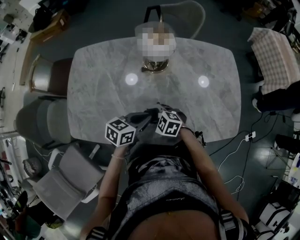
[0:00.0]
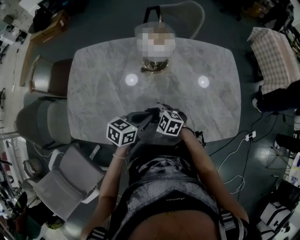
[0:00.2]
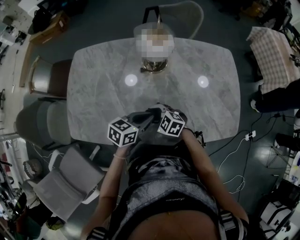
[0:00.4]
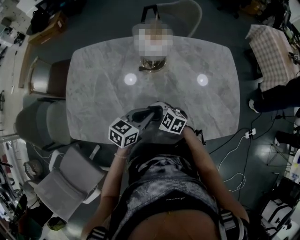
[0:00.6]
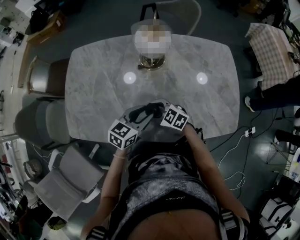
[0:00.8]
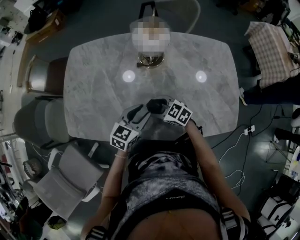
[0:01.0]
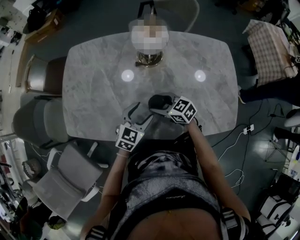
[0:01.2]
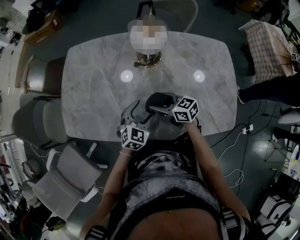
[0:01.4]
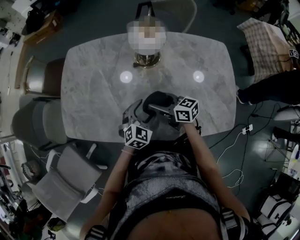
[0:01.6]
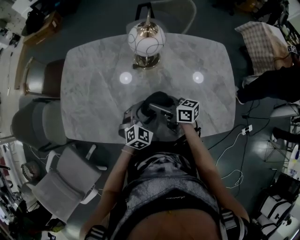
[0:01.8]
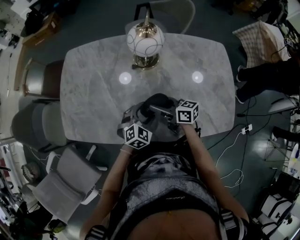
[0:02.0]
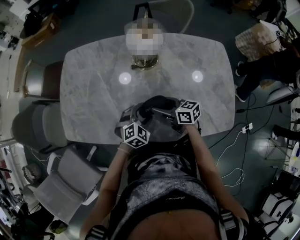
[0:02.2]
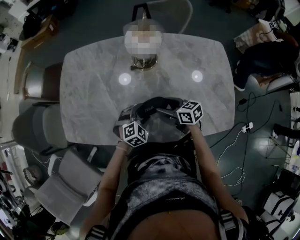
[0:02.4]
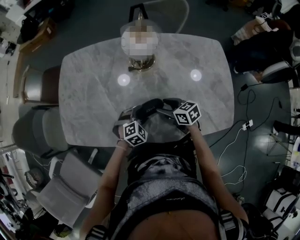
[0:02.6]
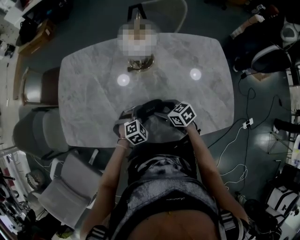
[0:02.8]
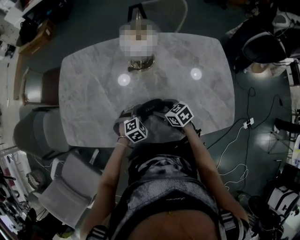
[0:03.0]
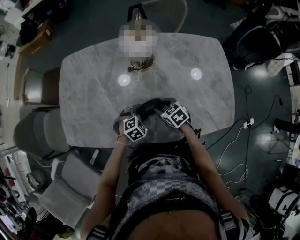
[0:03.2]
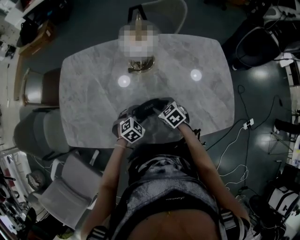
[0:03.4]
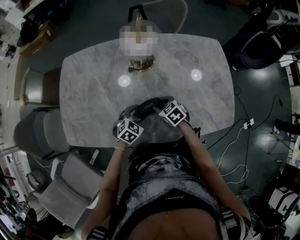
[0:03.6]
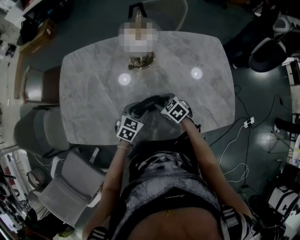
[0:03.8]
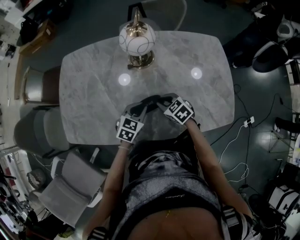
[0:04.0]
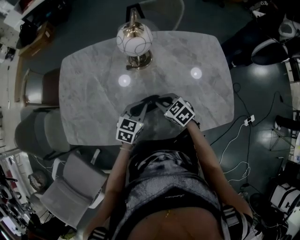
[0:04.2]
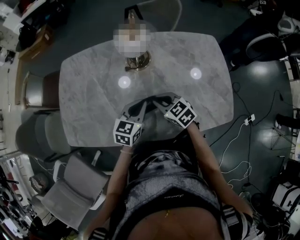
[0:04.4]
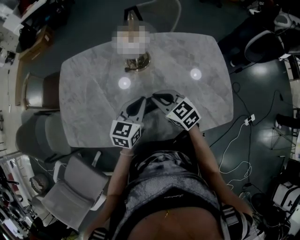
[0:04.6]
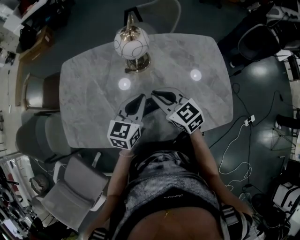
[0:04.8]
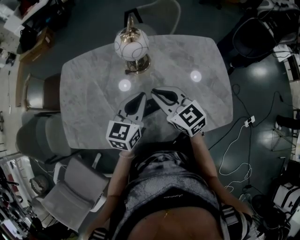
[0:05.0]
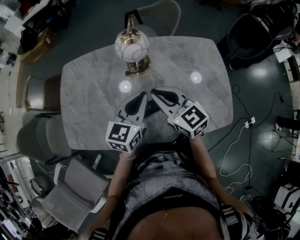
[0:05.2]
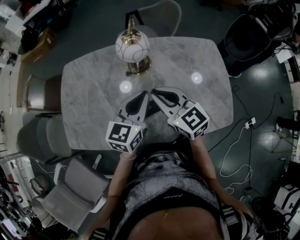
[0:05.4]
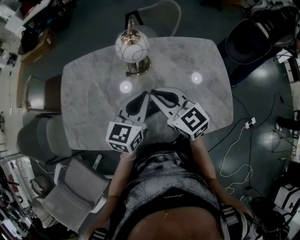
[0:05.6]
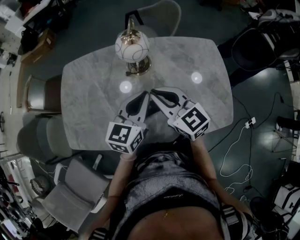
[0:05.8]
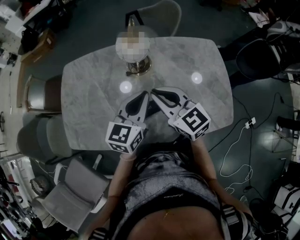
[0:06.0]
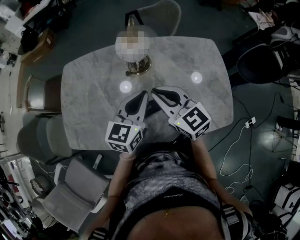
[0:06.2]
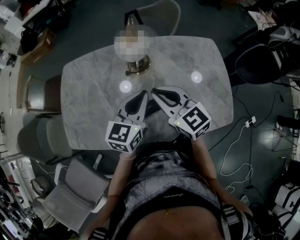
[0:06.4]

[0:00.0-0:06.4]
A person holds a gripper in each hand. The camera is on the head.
0:00.0 to 0:01.6: The right gripper shifts by about 10 cm, and points its fingers approximately 30 degrees further upward, while the left gripper goes roughly 5 cm downward, swivels about 50 degrees, and opens.
0:01.6 to 0:03.2: The two grippers go approximately 10 cm downward. The left gripper rotates roughly 30 degrees. Meanwhile the right gripper points its fingers roughly 40 degrees further downward.
0:03.2 to 0:04.8: The two grippers go some 20 cm upward. The right gripper turns by about 30 degrees, and closes up; the left gripper points its fingers about 40 degrees further upward, and closes up.
0:04.8 to 0:06.4: The grippers both shift upward by roughly 5 cm.

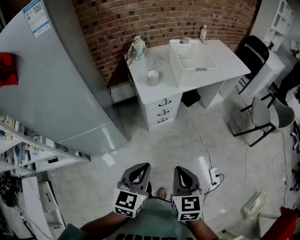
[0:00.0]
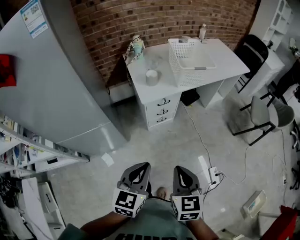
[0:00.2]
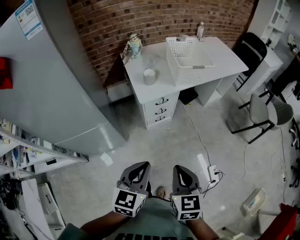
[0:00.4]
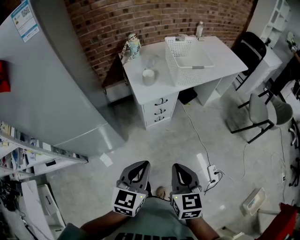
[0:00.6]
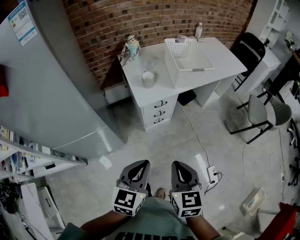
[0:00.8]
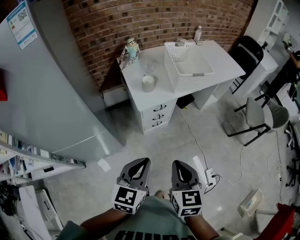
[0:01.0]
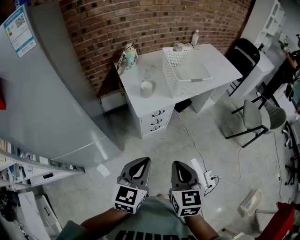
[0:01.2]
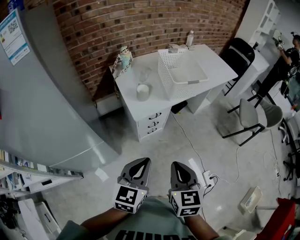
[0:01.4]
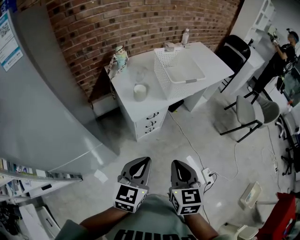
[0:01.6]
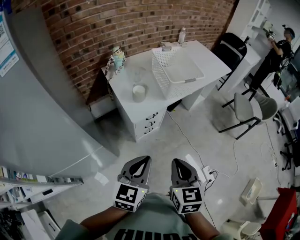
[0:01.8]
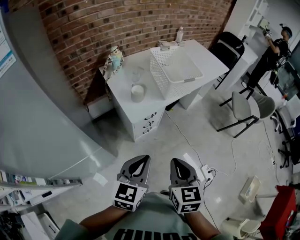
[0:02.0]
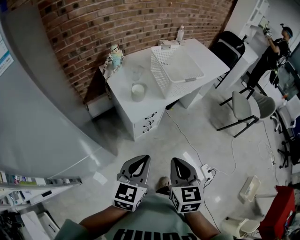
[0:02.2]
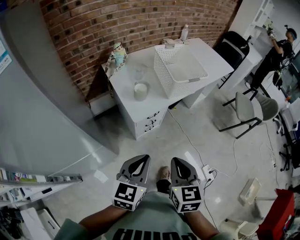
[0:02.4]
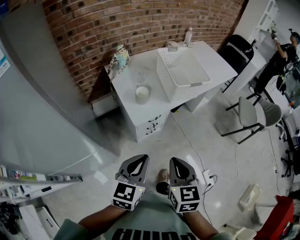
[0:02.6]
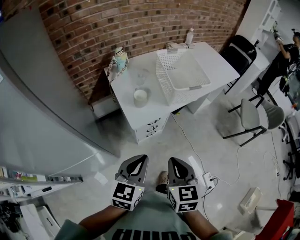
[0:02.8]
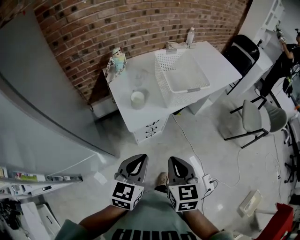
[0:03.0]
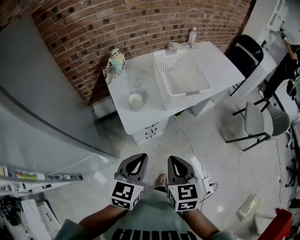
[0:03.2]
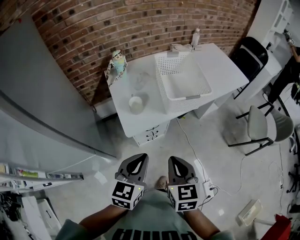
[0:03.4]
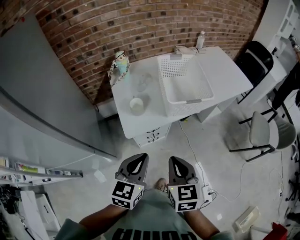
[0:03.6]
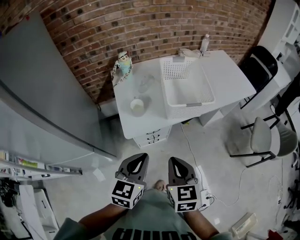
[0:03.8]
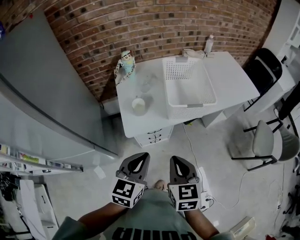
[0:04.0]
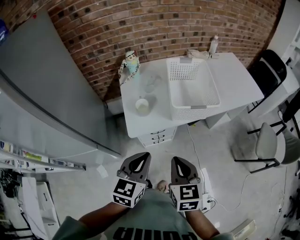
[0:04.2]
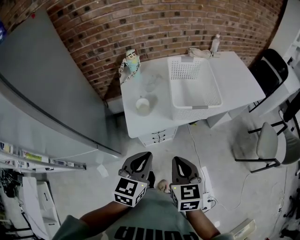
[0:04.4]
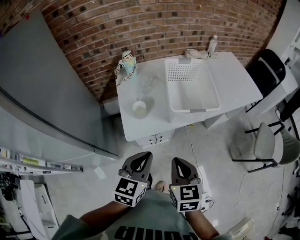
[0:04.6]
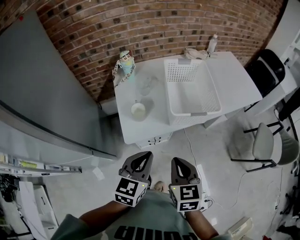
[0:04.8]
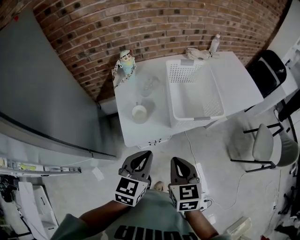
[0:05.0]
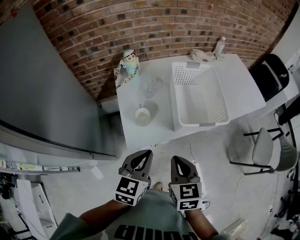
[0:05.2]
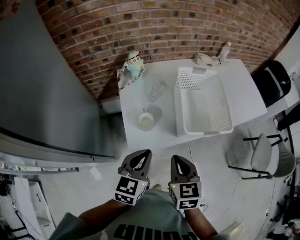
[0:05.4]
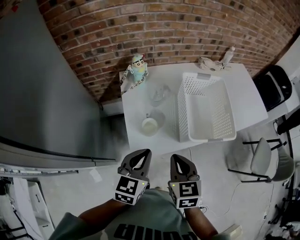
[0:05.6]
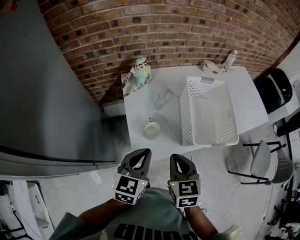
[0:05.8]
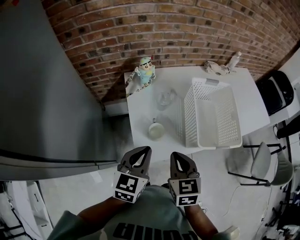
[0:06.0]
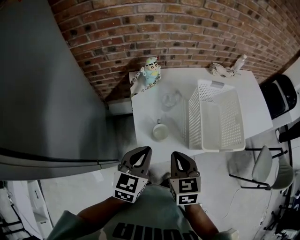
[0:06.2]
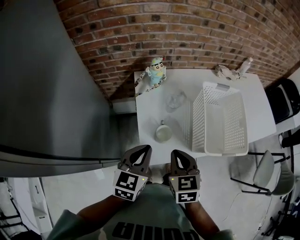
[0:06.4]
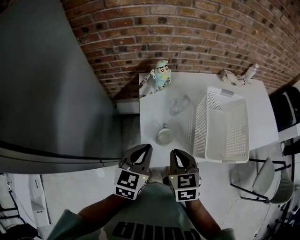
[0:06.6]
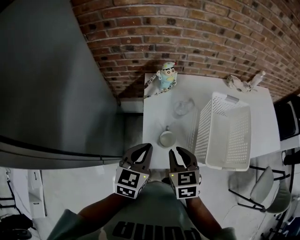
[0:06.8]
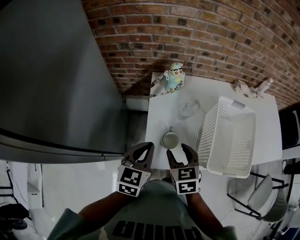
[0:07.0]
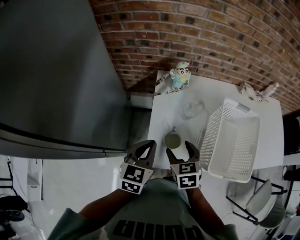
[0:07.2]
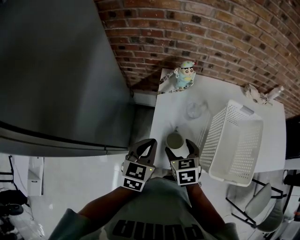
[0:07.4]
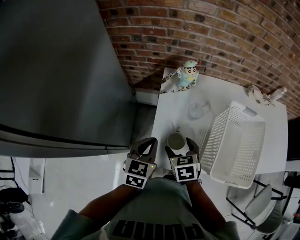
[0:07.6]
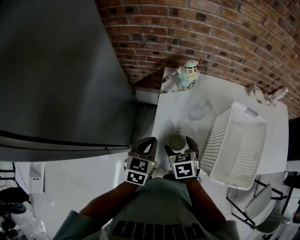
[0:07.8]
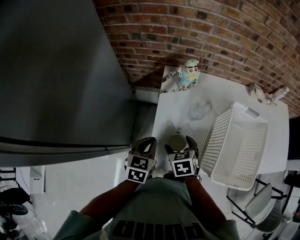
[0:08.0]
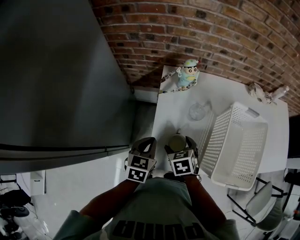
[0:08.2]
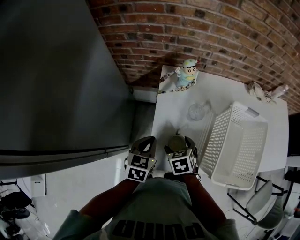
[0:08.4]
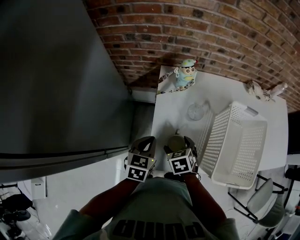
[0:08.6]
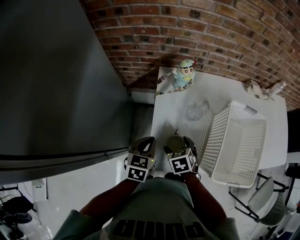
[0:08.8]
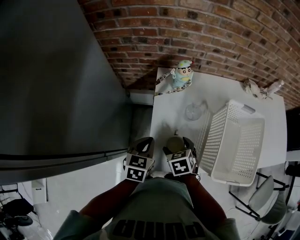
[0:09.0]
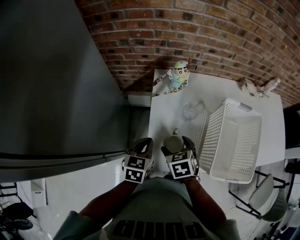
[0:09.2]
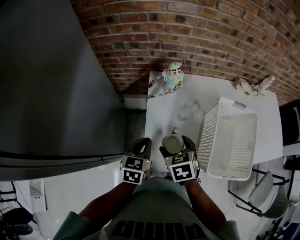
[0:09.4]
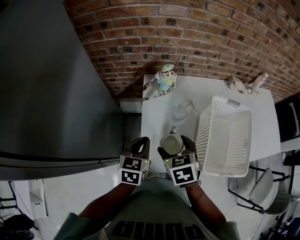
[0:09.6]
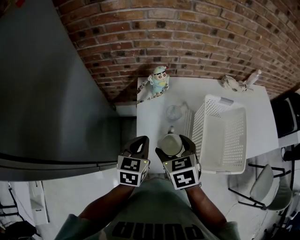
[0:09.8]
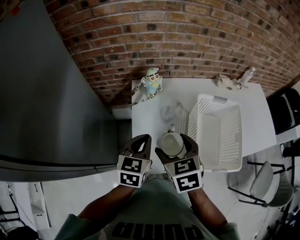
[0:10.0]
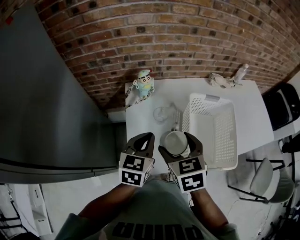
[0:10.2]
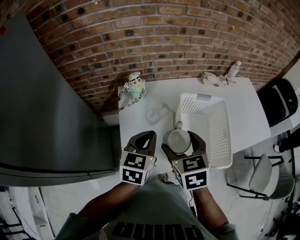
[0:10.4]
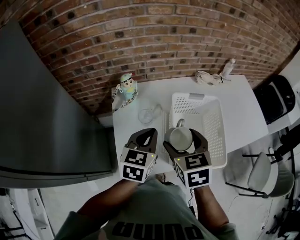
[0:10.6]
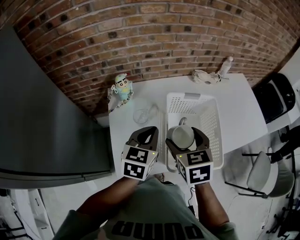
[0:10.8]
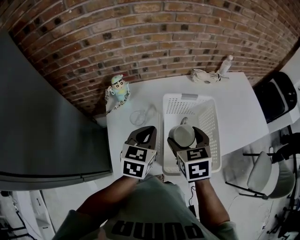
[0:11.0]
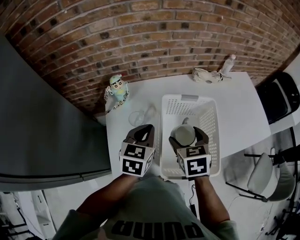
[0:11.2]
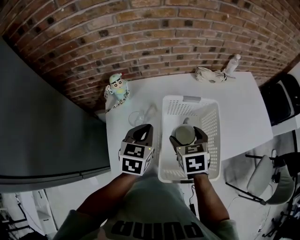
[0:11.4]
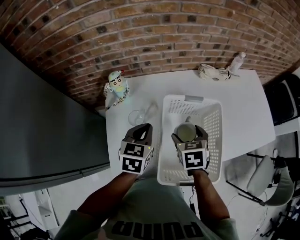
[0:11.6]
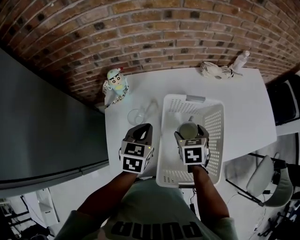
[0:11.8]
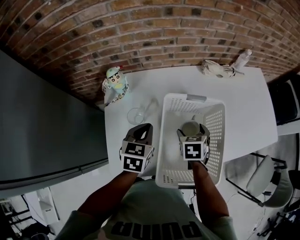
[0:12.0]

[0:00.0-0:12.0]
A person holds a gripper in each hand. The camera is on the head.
0:00.0 to 0:01.6: The left gripper heads forward, covering approximately 15 cm, while the right gripper is displaced forward and to the left by approximately 15 cm.
0:01.6 to 0:03.0: Both grippers travel together forward, some 10 cm.
0:03.0 to 0:04.4: Both grippers travel together forward and to the right, approximately 10 cm.
0:04.4 to 0:06.0: Both grippers travel together forward and to the left, about 20 cm.
0:06.0 to 0:07.6: The left gripper shifts by roughly 10 cm, and swivels roughly 20 degrees; the right gripper shifts by some 15 cm, swivels approximately 30 degrees, and opens its fingers.
0:07.6 to 0:09.0: The left gripper moves downward, about 5 cm.
0:09.0 to 0:10.4: The right gripper goes some 25 cm upward and to the right, and turns by approximately 20 degrees. The left gripper moves to the right and upward, about 20 cm.
0:10.4 to 0:12.0: The right gripper heads downward, to the right and forward, covering approximately 25 cm, and changes its angle by approximately 20 degrees, while the left gripper shifts approximately 15 cm forward, downward and to the right.

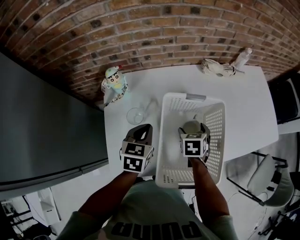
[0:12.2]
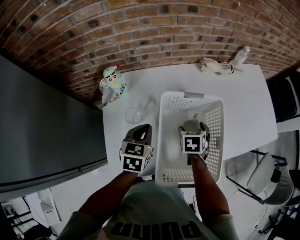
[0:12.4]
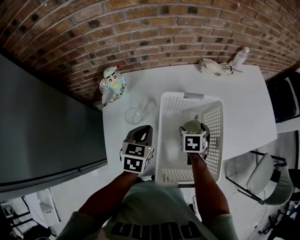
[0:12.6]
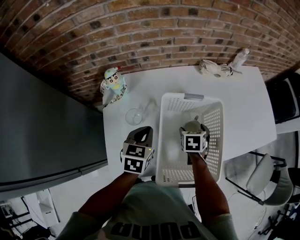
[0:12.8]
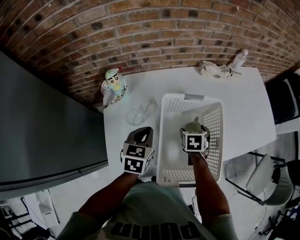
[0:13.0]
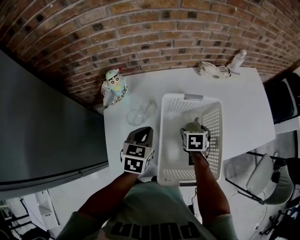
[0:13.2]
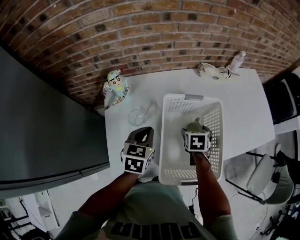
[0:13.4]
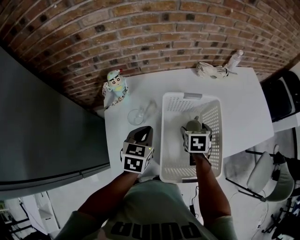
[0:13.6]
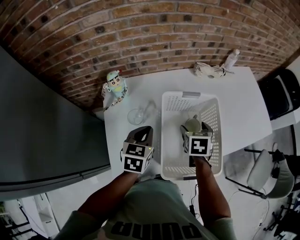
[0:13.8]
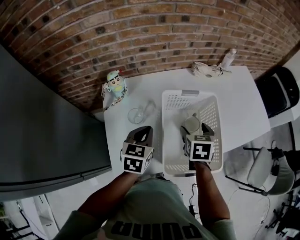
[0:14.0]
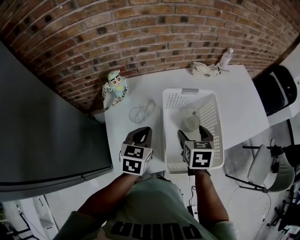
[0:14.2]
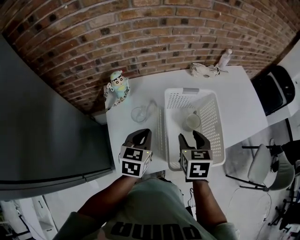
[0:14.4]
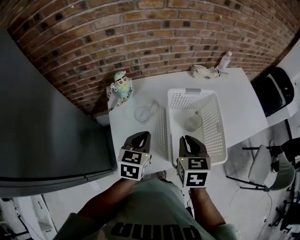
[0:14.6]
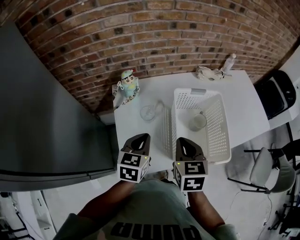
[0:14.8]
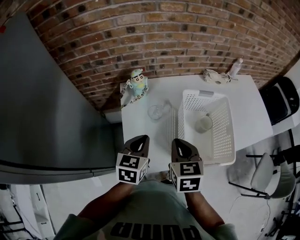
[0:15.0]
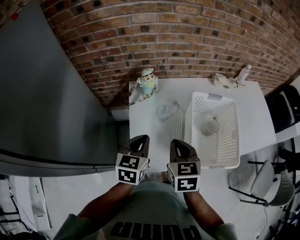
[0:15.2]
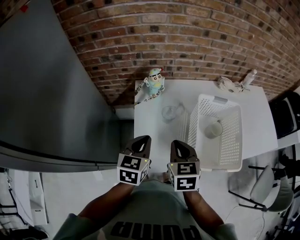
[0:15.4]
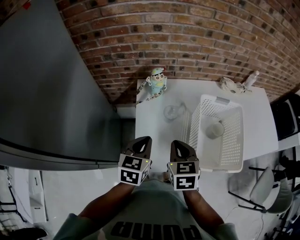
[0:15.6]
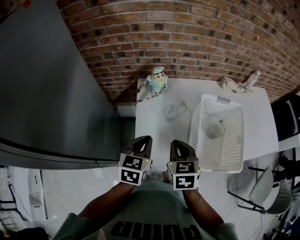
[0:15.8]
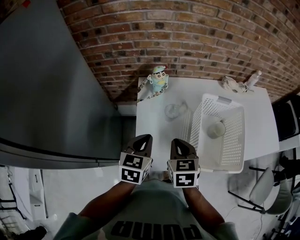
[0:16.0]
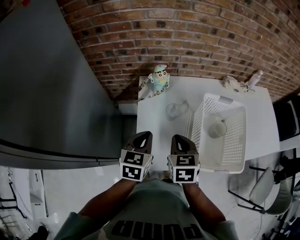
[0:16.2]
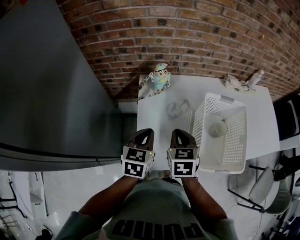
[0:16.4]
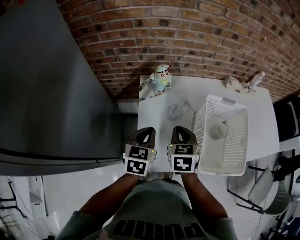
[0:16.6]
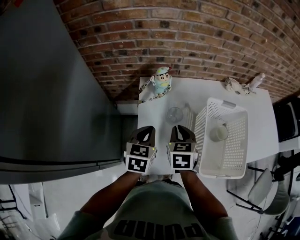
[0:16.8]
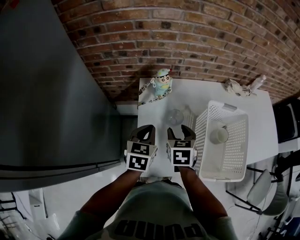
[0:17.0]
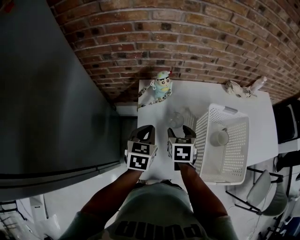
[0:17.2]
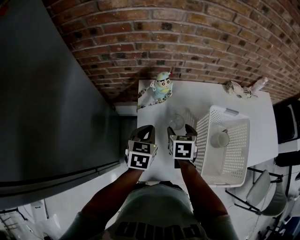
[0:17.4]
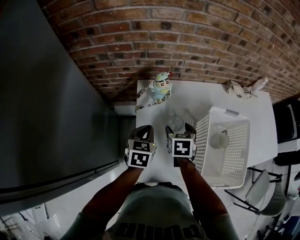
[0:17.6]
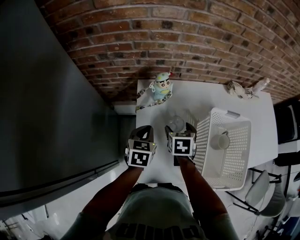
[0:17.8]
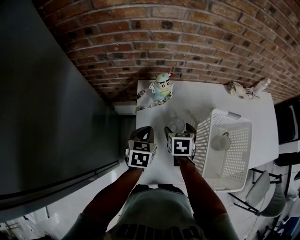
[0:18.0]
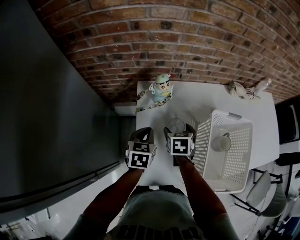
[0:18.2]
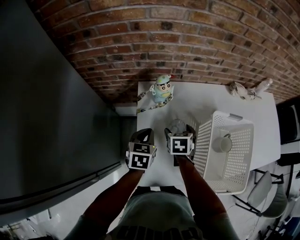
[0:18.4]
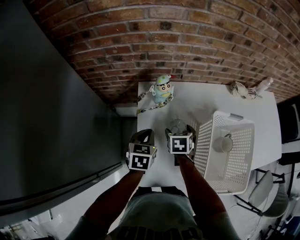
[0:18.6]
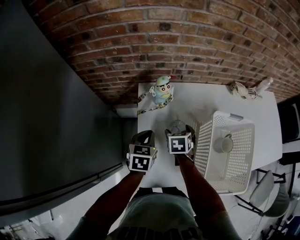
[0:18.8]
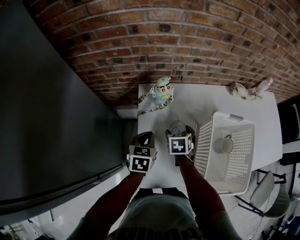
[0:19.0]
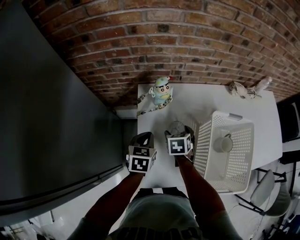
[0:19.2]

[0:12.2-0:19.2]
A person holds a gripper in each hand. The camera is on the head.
0:12.2 to 0:13.6: The grippers make only small movements.
0:13.6 to 0:15.0: The right gripper is displaced backward, to the left and upward by some 30 cm, swivels some 20 degrees, and closes its fingers, while the left gripper goes some 15 cm backward and to the left.
0:15.0 to 0:16.4: Both grippers move to the left, roughly 5 cm.
0:16.4 to 0:17.8: Both grippers move forward and downward, approximately 15 cm. The right gripper opens its fingers.
0:17.8 to 0:19.2: There are only small adjustments of the grippers.
